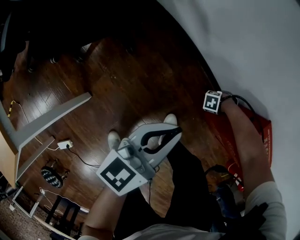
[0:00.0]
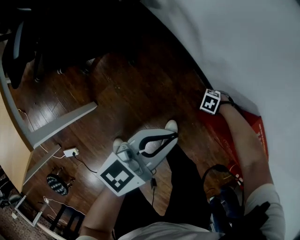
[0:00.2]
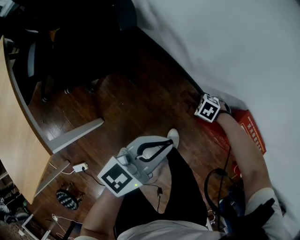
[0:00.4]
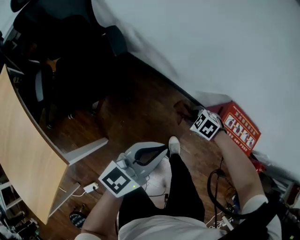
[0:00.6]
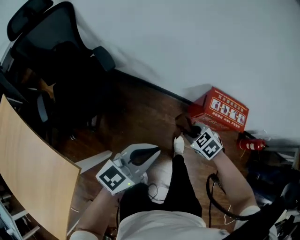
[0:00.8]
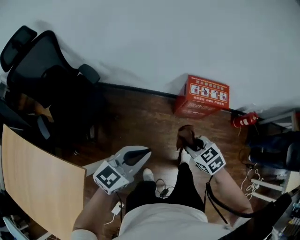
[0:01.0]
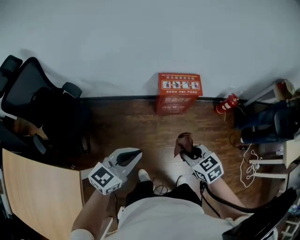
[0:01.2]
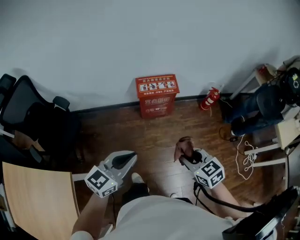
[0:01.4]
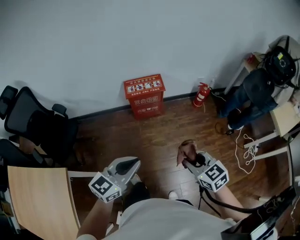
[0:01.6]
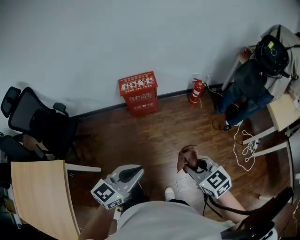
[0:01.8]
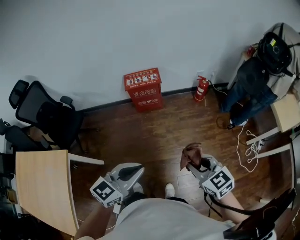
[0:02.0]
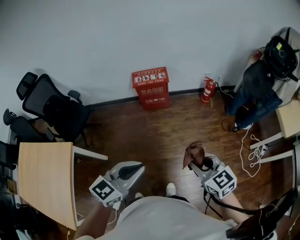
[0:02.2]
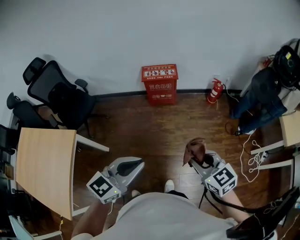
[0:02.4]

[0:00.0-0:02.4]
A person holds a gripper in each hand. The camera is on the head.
0.0 to 1.2 s: The left gripper heads upward, covering about 30 cm, and changes its angle by some 50 degrees. The right gripper travels upward by approximately 60 cm, and swivels some 120 degrees.
1.2 to 2.4 s: The left gripper heads to the right and backward, covering roughly 40 cm, while the right gripper moves to the right, backward and upward, approximately 40 cm.

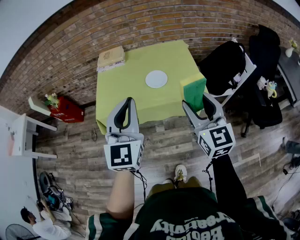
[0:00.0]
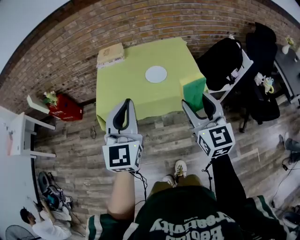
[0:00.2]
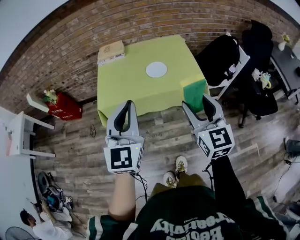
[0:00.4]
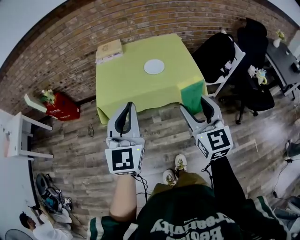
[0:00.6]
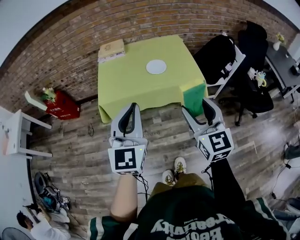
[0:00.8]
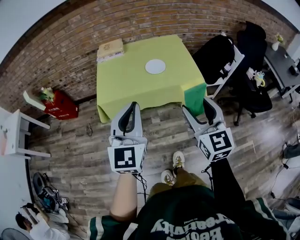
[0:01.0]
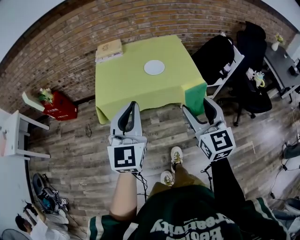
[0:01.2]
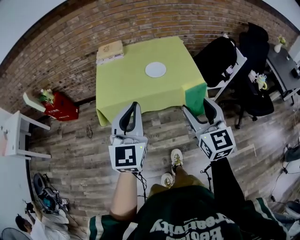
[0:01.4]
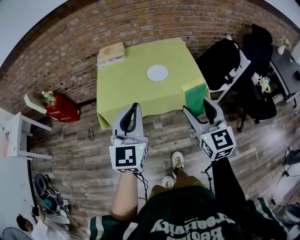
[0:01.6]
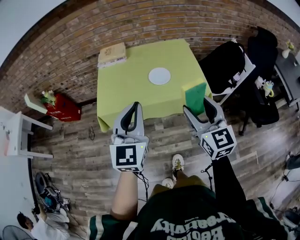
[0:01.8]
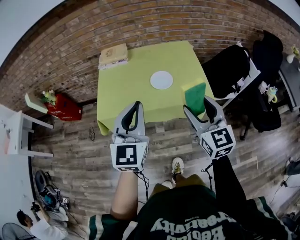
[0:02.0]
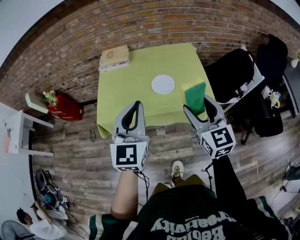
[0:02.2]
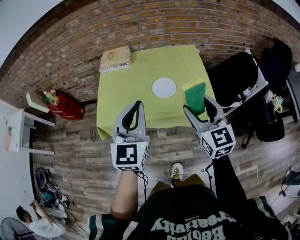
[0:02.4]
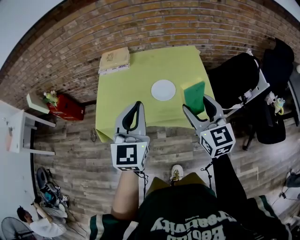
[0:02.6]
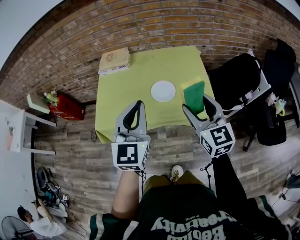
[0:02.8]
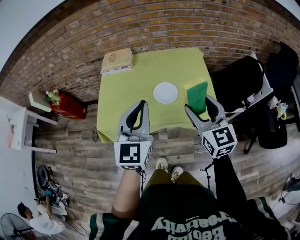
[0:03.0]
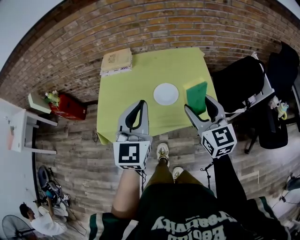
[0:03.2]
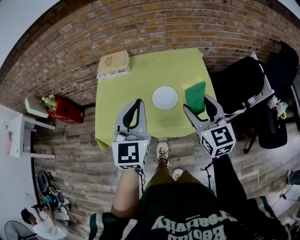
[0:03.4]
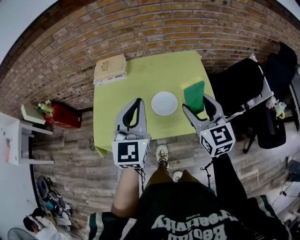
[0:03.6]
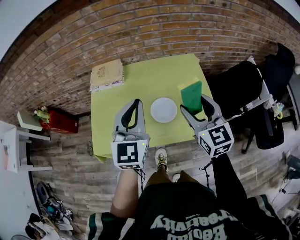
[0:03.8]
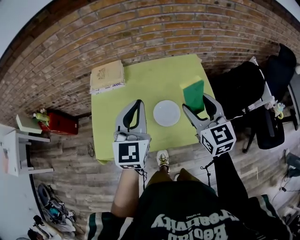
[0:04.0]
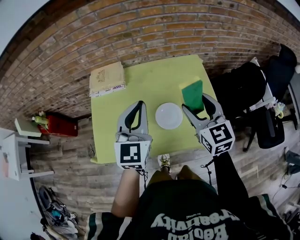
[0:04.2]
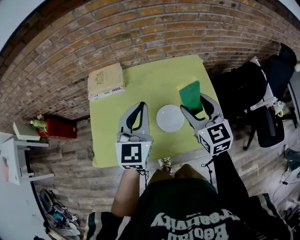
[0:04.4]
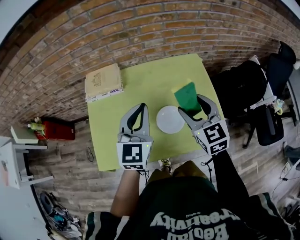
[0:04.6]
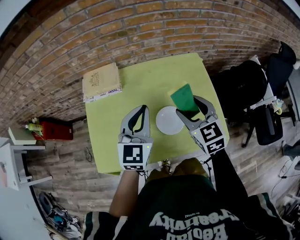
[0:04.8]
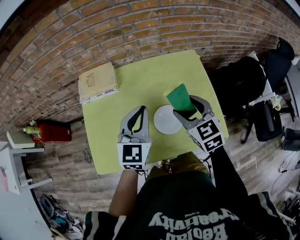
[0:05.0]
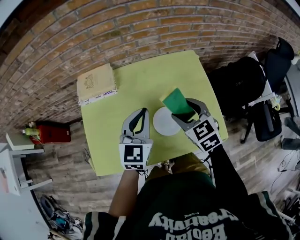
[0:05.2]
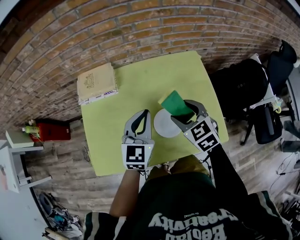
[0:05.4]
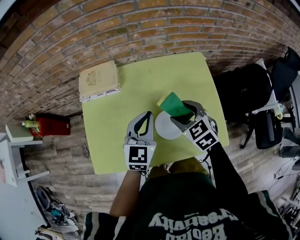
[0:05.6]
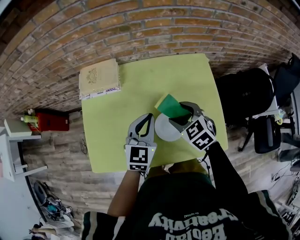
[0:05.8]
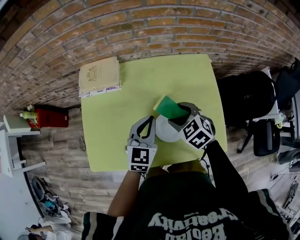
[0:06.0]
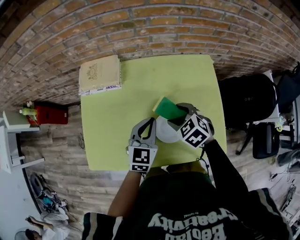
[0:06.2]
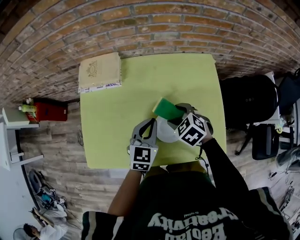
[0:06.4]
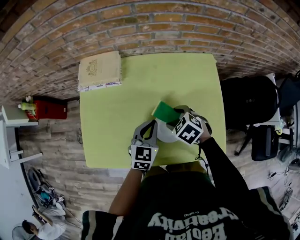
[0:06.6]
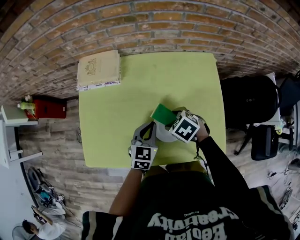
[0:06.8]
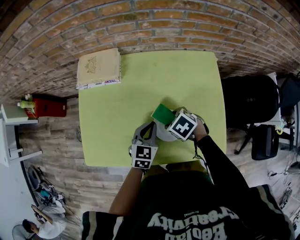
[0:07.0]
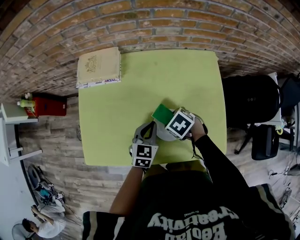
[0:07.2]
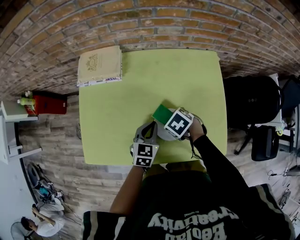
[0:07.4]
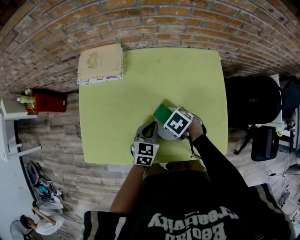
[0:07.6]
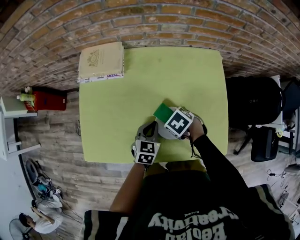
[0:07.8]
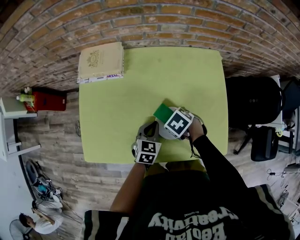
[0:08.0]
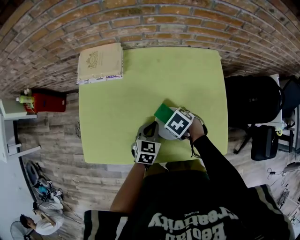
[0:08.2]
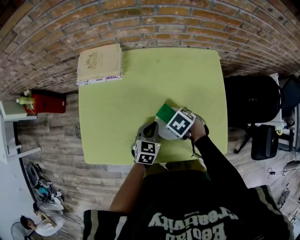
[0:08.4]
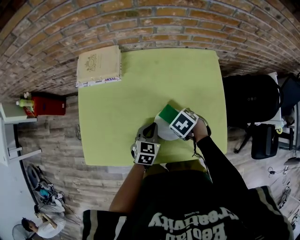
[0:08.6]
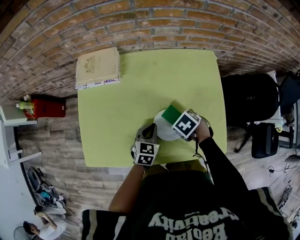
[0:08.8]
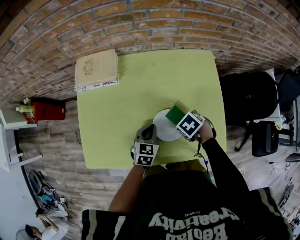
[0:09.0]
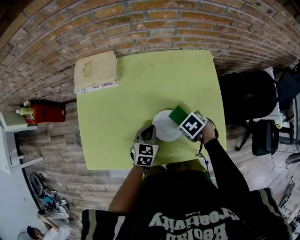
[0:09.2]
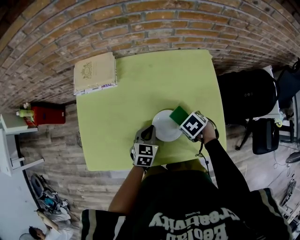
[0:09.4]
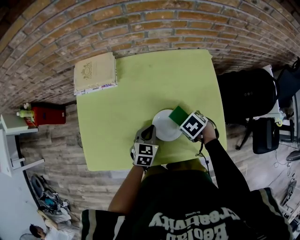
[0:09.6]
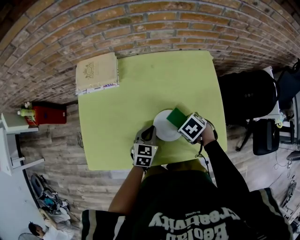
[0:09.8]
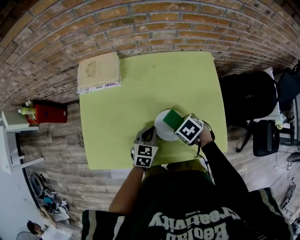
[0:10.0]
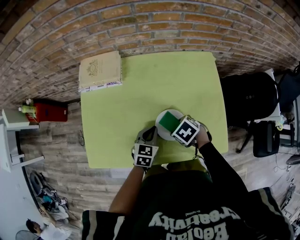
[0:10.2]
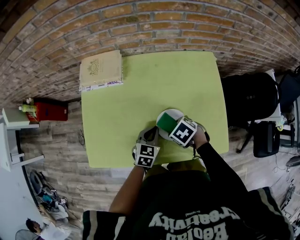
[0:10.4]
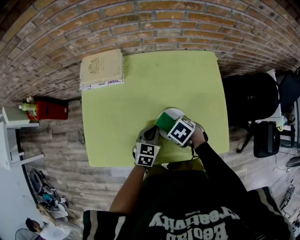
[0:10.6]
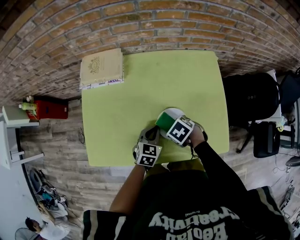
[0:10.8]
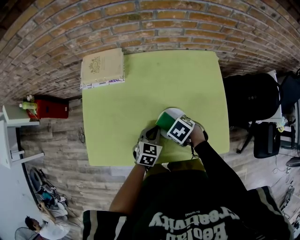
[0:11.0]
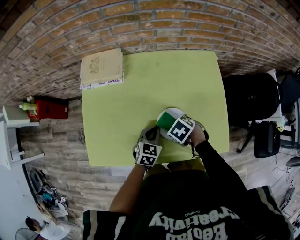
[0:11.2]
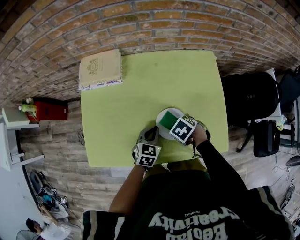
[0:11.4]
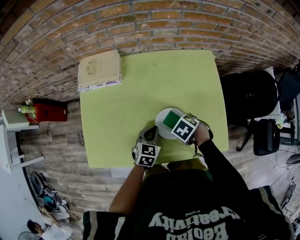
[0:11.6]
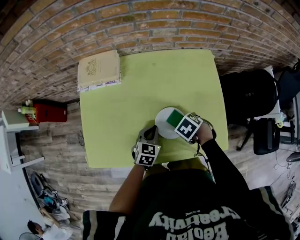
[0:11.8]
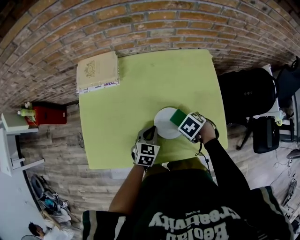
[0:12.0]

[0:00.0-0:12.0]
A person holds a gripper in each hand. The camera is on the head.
0.0 to 1.6 s: The right gripper travels backward and to the left by about 10 cm. Meanwhile the left gripper moves backward, approximately 5 cm.
1.6 to 3.0 s: Both grippers travel together forward, approximately 20 cm.
3.0 to 4.4 s: The two grippers go roughly 20 cm forward.
4.4 to 6.0 s: The two grippers go some 15 cm downward. The right gripper angles its fingers downward, by approximately 30 degrees.
6.0 to 7.6 s: The two grippers go roughly 15 cm downward. The right gripper rotates approximately 30 degrees.
7.6 to 9.0 s: The right gripper changes place by approximately 5 cm.
9.0 to 10.4 s: The right gripper moves about 5 cm.
10.4 to 12.0 s: The right gripper changes place by some 10 cm.

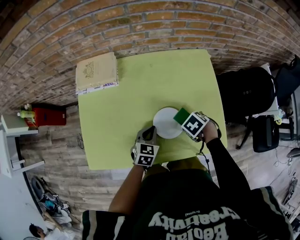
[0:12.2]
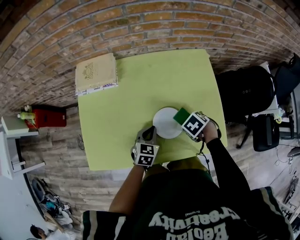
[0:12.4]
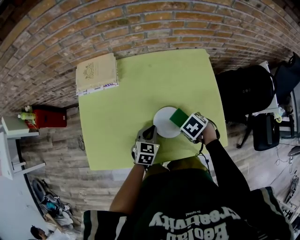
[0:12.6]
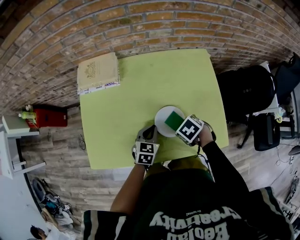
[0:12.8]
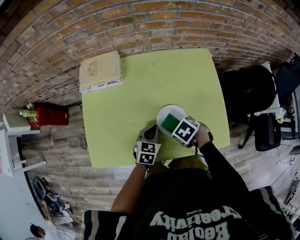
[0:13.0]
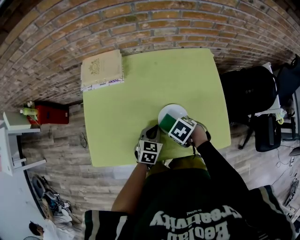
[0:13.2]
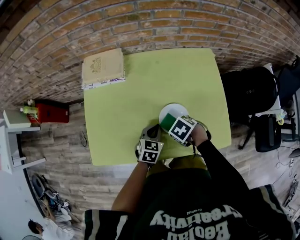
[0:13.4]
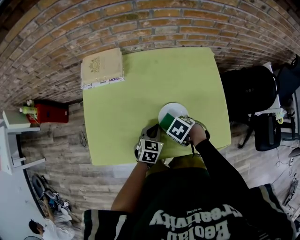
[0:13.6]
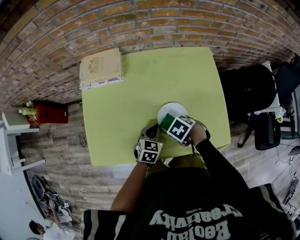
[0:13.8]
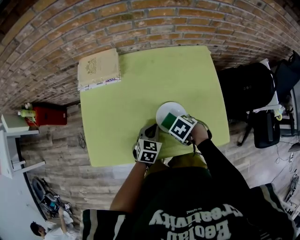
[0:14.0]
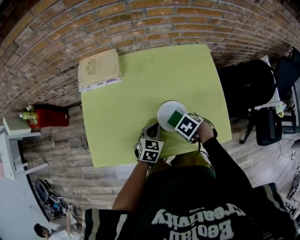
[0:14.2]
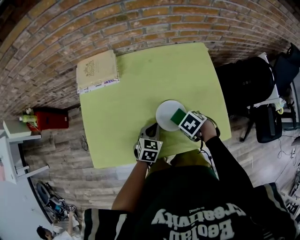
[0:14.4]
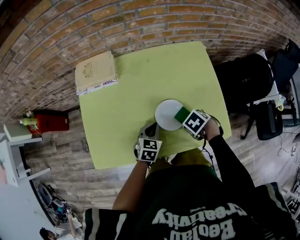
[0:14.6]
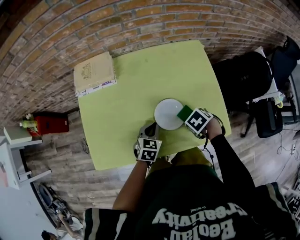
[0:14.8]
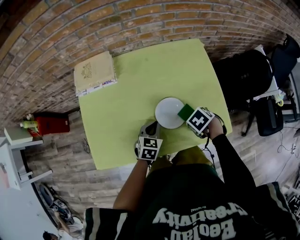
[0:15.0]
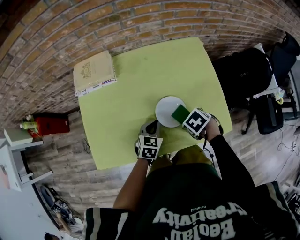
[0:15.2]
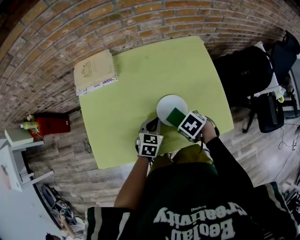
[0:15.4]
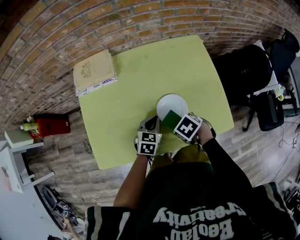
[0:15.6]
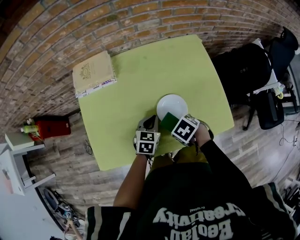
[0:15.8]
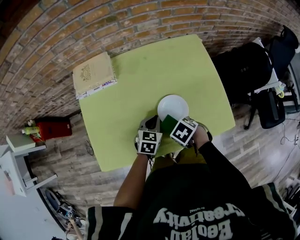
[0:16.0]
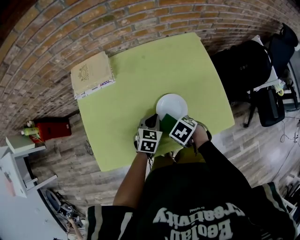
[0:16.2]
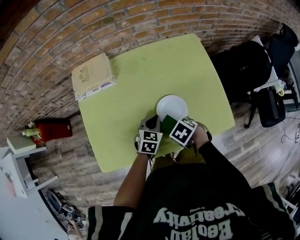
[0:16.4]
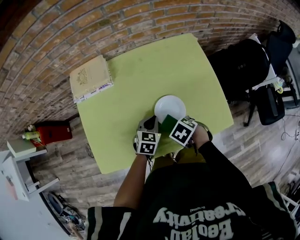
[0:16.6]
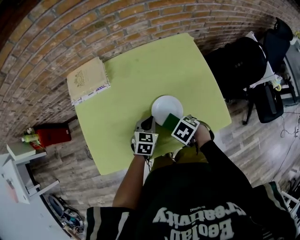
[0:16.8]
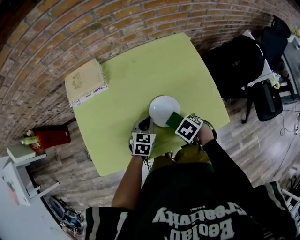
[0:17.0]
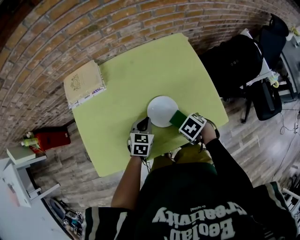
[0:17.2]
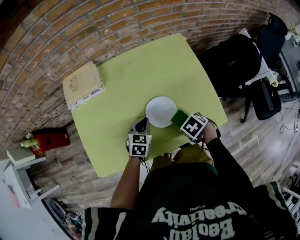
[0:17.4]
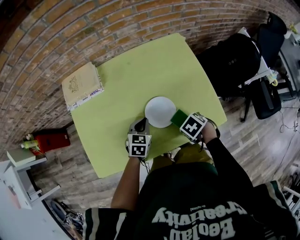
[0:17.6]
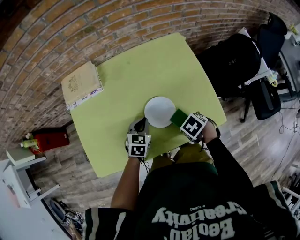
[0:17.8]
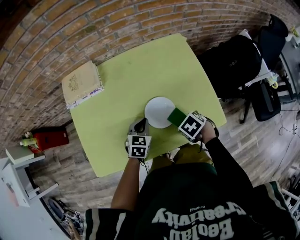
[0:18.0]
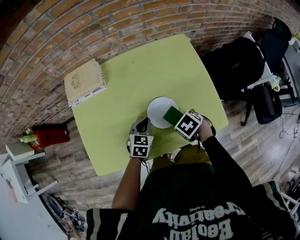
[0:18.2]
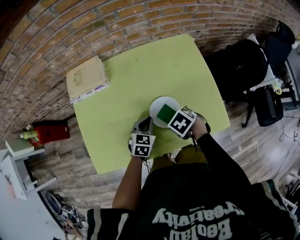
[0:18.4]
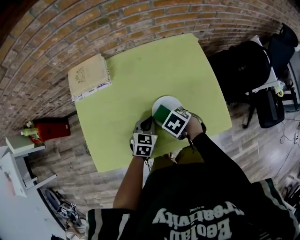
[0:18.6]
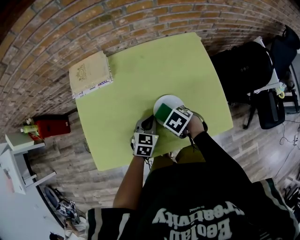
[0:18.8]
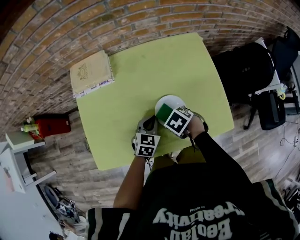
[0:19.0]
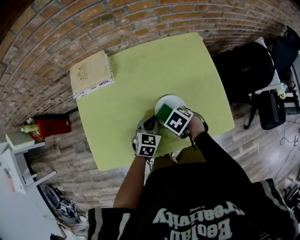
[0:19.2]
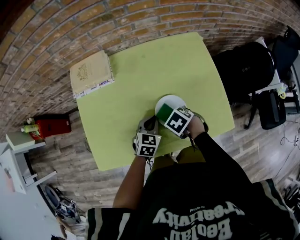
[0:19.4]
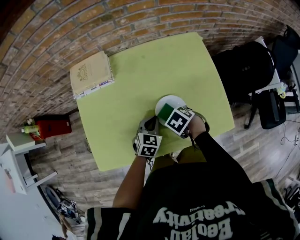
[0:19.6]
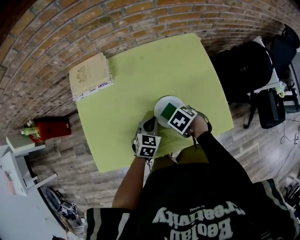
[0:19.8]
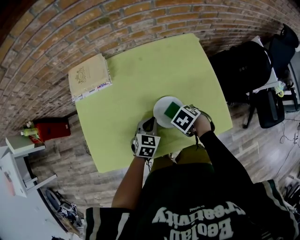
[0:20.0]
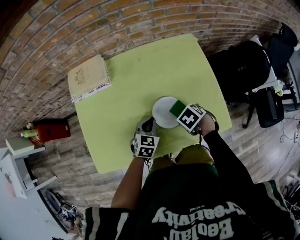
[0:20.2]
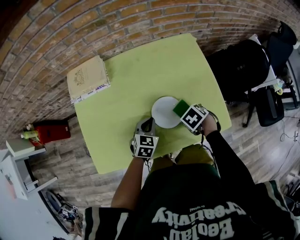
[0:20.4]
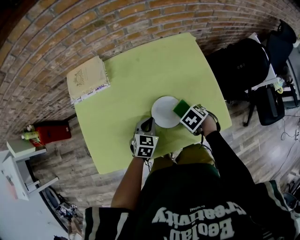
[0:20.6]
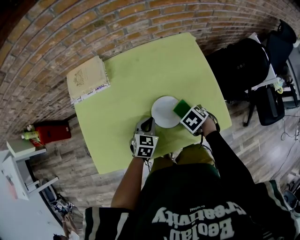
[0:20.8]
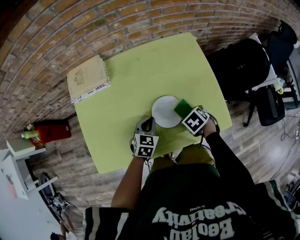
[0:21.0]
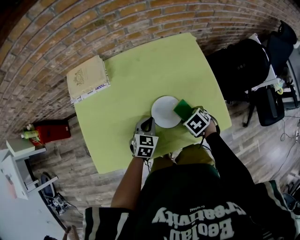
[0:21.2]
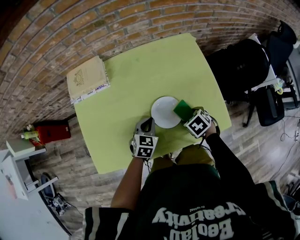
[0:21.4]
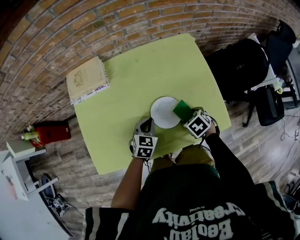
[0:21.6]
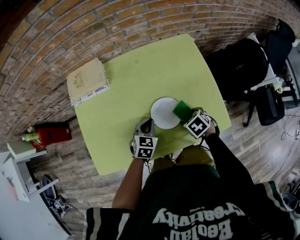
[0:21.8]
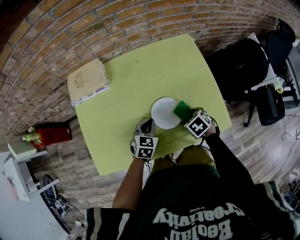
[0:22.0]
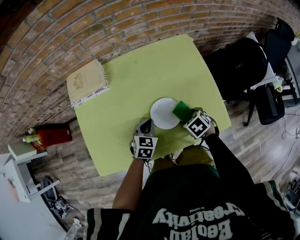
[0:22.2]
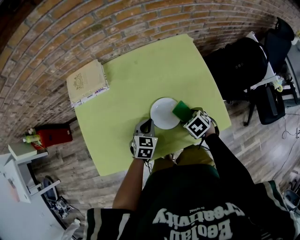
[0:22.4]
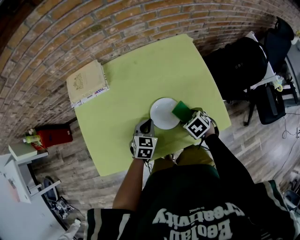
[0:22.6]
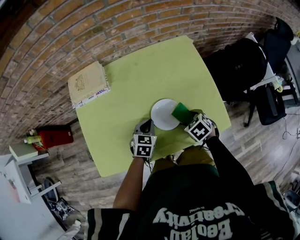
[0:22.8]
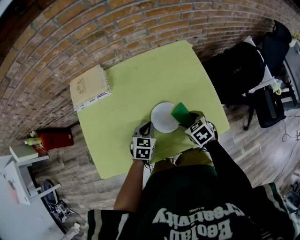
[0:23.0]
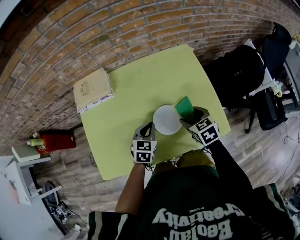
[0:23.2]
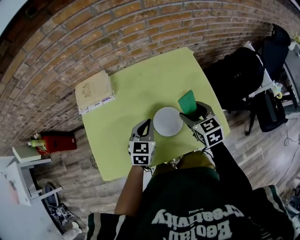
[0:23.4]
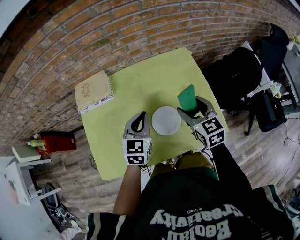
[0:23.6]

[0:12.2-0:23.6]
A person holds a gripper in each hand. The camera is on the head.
12.2 to 13.6 s: The right gripper ends up approximately 10 cm from where it was.
13.6 to 15.0 s: The right gripper moves some 10 cm.
15.0 to 16.4 s: The right gripper moves about 10 cm.
16.4 to 17.8 s: The right gripper changes place by approximately 10 cm.
17.8 to 19.4 s: The right gripper shifts by about 10 cm.
19.4 to 20.8 s: The right gripper ends up some 10 cm from where it was.
20.8 to 22.2 s: There are only small adjustments of the grippers.
22.2 to 23.6 s: Both grippers move upward, about 20 cm. The right gripper points its fingers roughly 50 degrees further upward.
